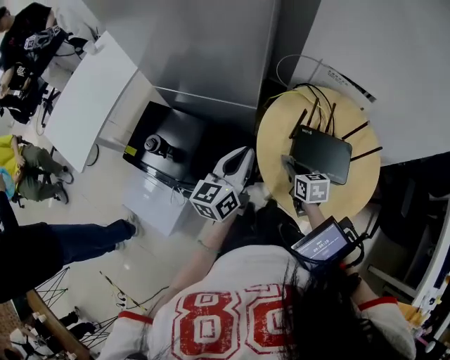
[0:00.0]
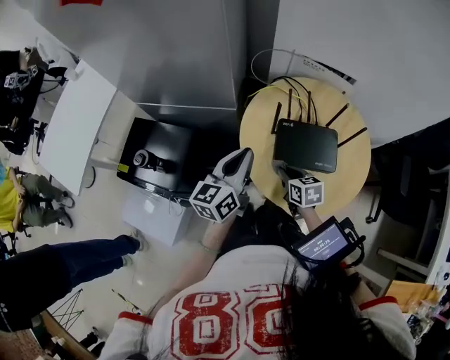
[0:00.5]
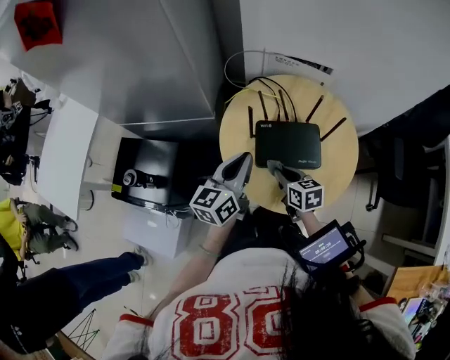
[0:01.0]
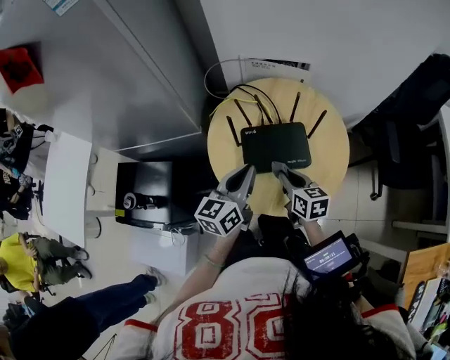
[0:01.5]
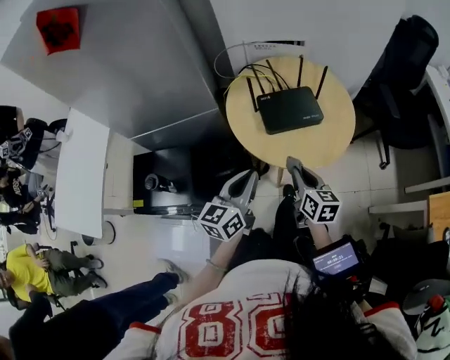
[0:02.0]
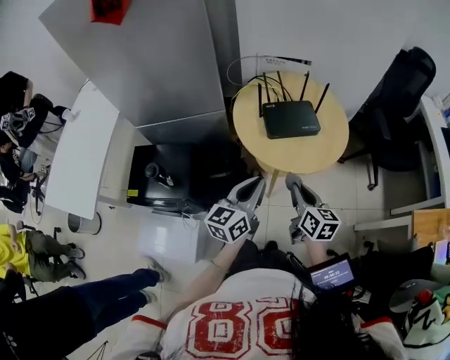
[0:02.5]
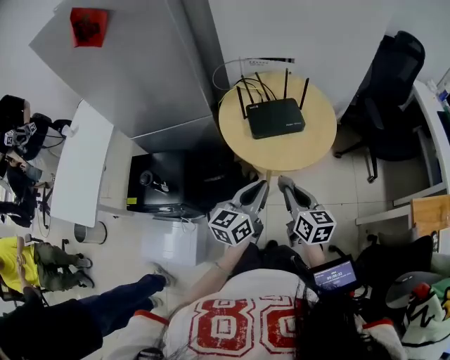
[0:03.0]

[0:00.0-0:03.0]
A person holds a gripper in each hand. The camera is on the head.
0:00.0 to 0:01.5: The left gripper travels to the right by approximately 15 cm, and changes its angle by some 20 degrees; the right gripper goes about 10 cm to the right and upward, and turns by roughly 30 degrees.
0:01.5 to 0:03.0: The right gripper moves backward and upward, approximately 25 cm. Meanwhile the left gripper moves backward, about 20 cm.

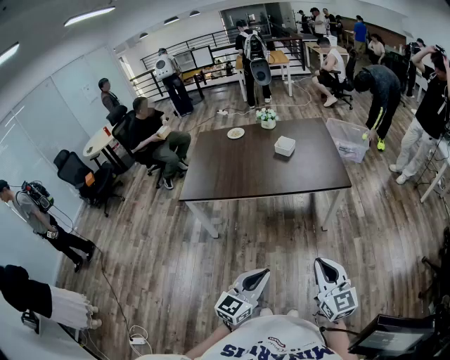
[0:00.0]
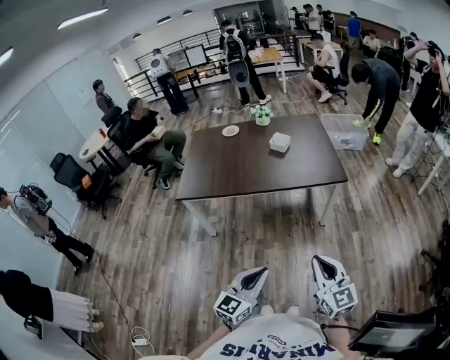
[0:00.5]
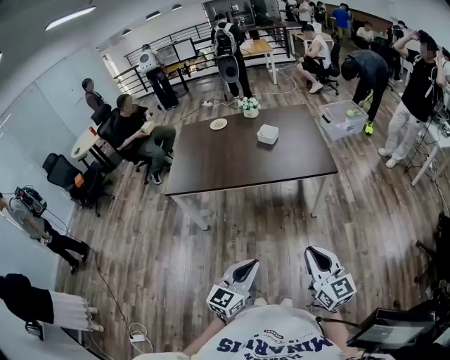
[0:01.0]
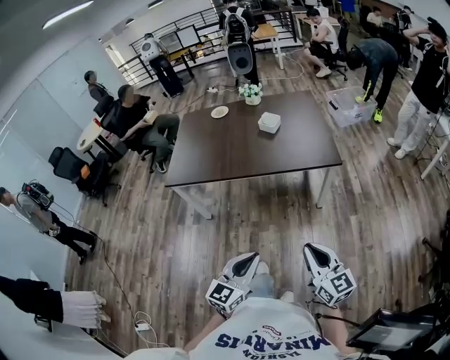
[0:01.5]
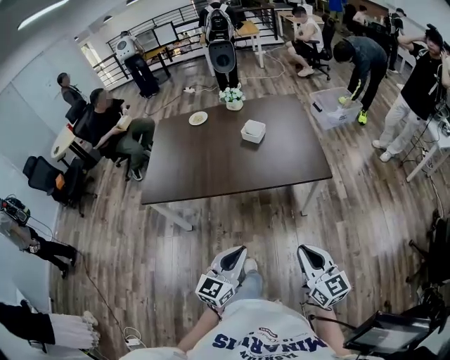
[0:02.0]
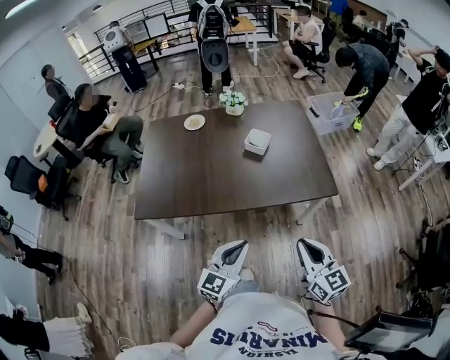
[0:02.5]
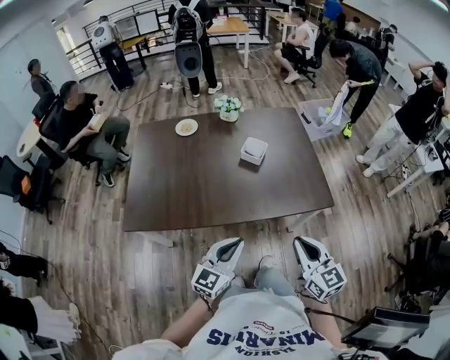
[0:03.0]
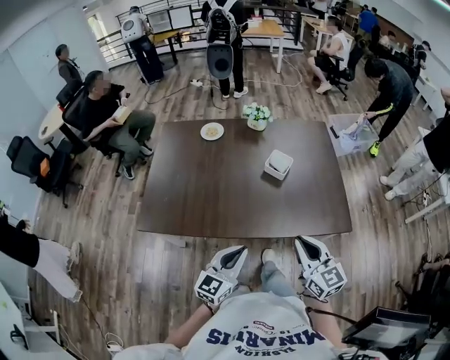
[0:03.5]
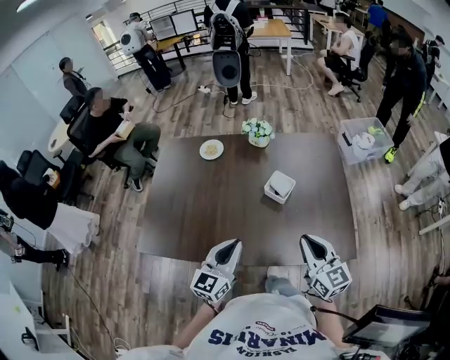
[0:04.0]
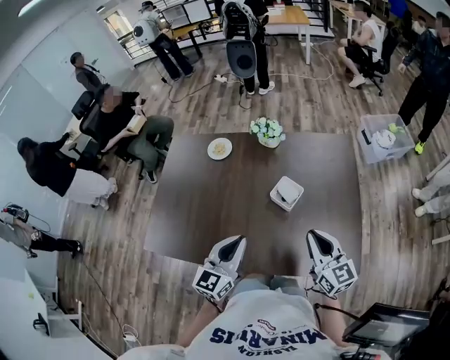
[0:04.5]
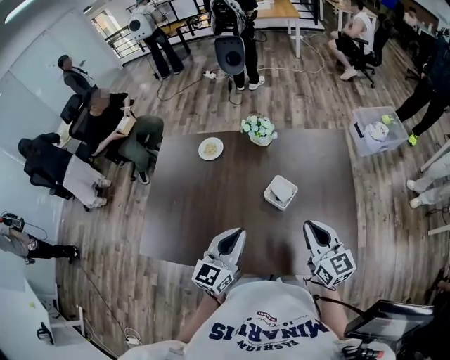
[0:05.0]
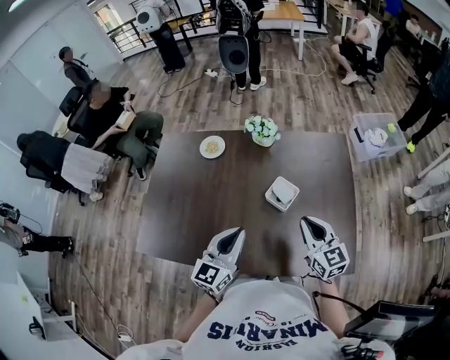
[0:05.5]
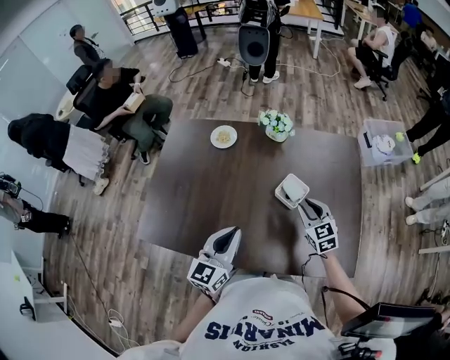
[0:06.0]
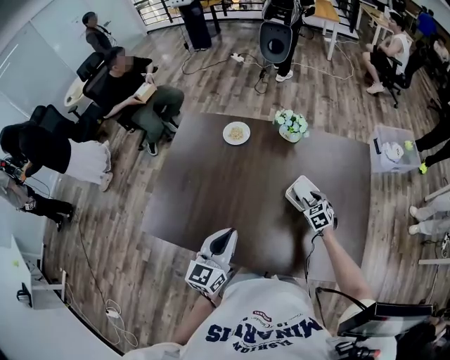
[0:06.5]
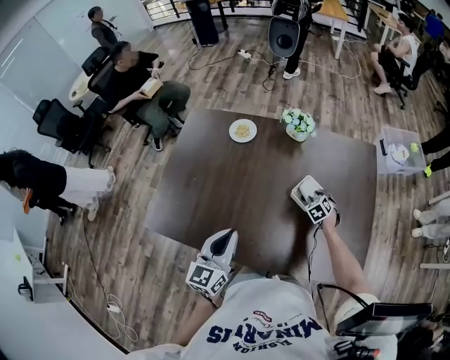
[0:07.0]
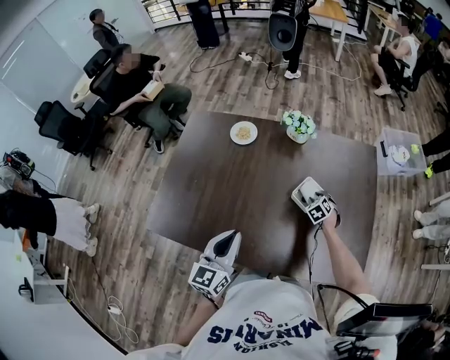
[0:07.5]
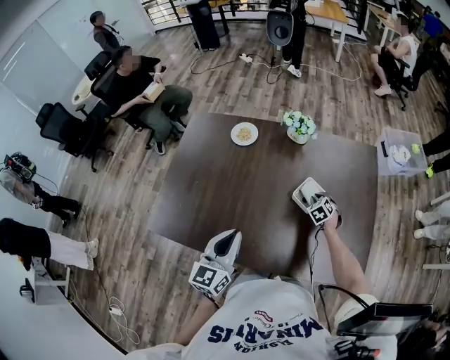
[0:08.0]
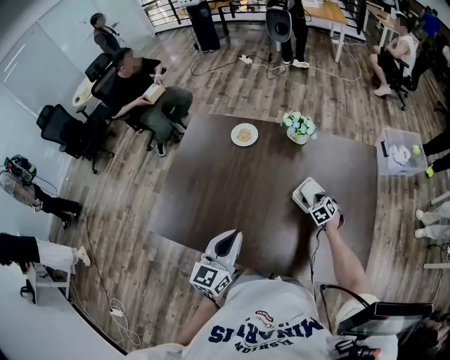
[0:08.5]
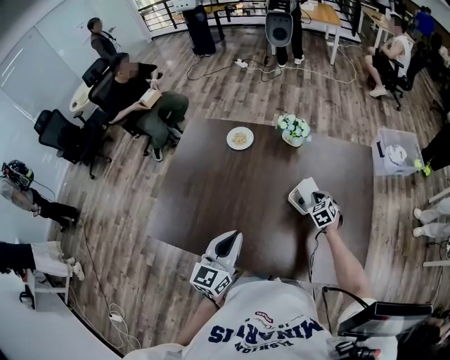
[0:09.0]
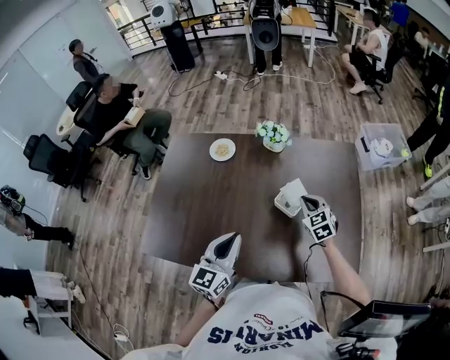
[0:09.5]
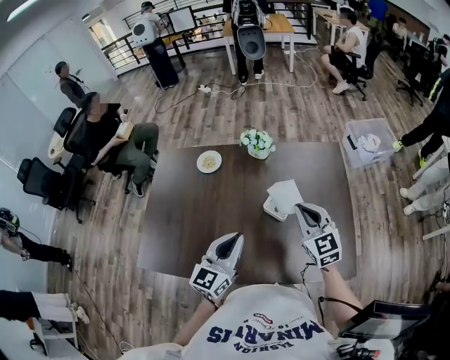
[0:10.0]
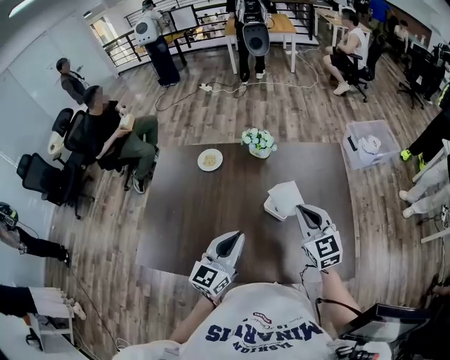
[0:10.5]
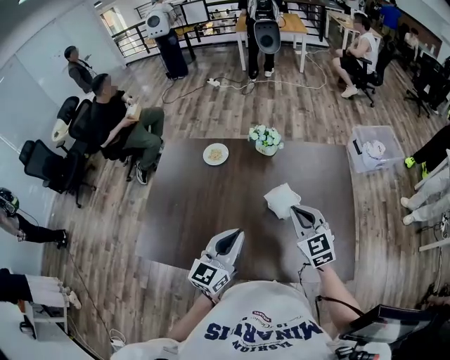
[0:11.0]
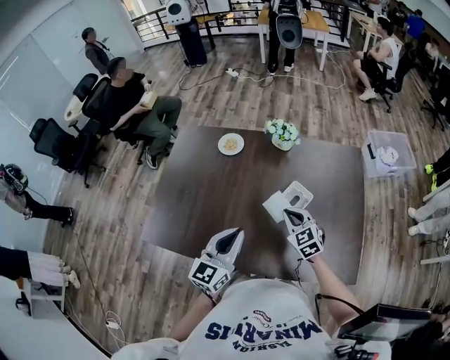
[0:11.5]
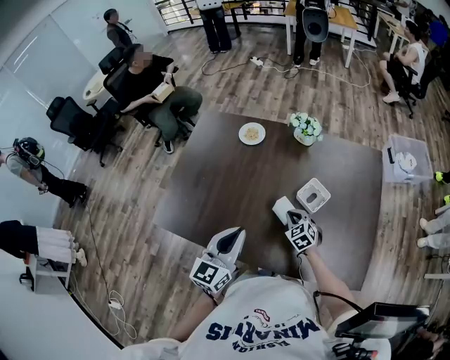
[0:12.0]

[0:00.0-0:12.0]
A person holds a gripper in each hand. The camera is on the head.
0:00.0 to 0:02.0: The two grippers go about 15 cm forward.
0:02.0 to 0:04.0: Both grippers are carried forward, roughly 50 cm.
0:04.0 to 0:06.0: The right gripper shifts about 25 cm forward and downward, swivels about 30 degrees, and opens, while the left gripper goes about 10 cm forward.
0:06.0 to 0:08.0: The right gripper is displaced downward and forward by approximately 20 cm, and swivels some 30 degrees. Meanwhile the left gripper heads to the left, covering about 5 cm.
0:08.0 to 0:10.0: The left gripper is displaced to the right by approximately 10 cm, while the right gripper travels upward by about 30 cm, and points its fingers about 40 degrees further upward.
0:10.0 to 0:12.0: The right gripper heads downward and to the left, covering roughly 30 cm, and turns by roughly 30 degrees. The left gripper is displaced to the left by approximately 10 cm.

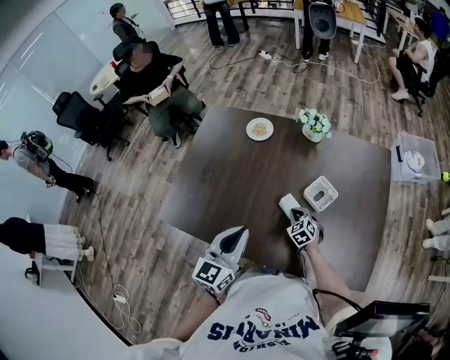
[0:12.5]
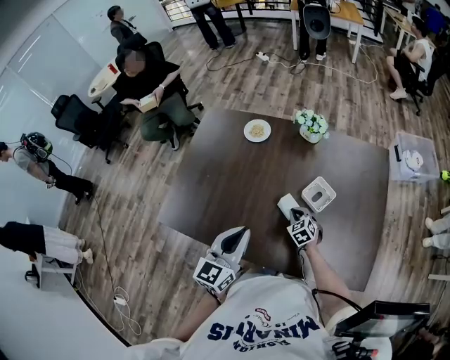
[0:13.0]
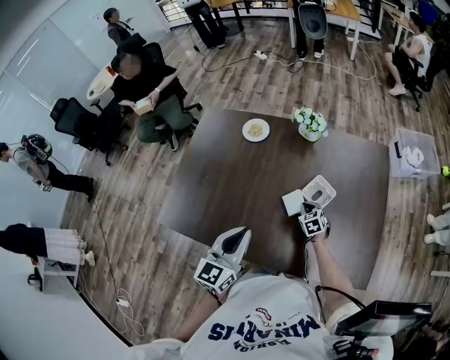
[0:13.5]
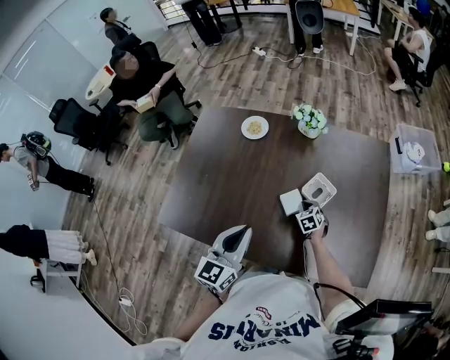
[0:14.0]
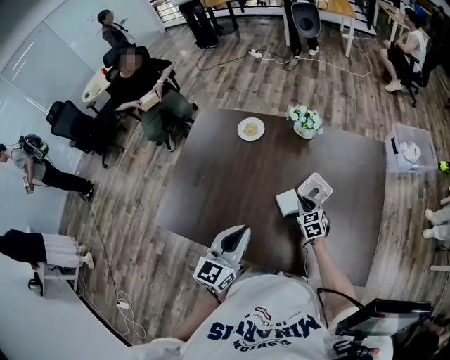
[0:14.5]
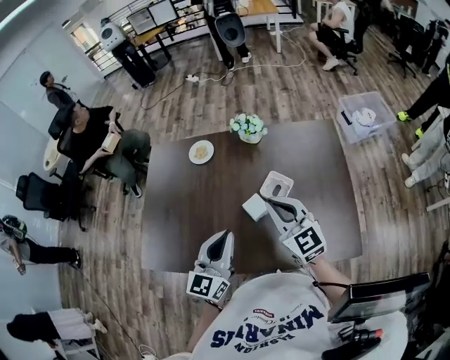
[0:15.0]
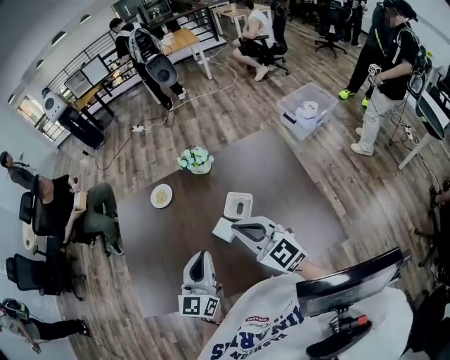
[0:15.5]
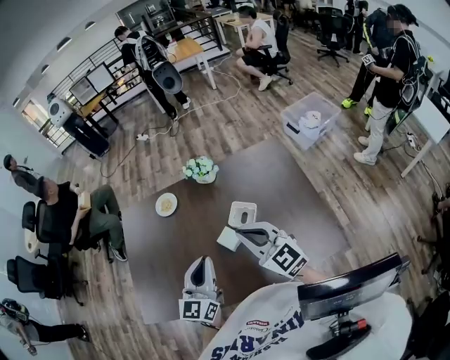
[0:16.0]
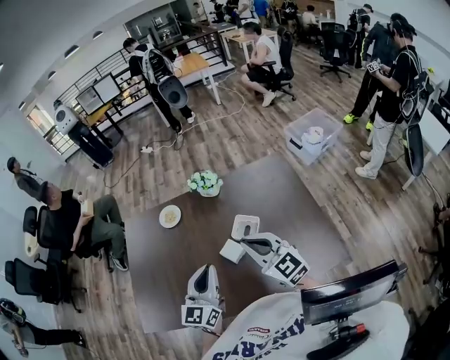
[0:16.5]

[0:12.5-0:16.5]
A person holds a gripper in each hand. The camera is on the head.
0:12.5 to 0:14.5: The right gripper moves to the right, approximately 5 cm.
0:14.5 to 0:16.5: The right gripper heads upward, covering about 30 cm, and angles its fingers upward, by about 30 degrees. The left gripper is displaced to the right by roughly 5 cm.

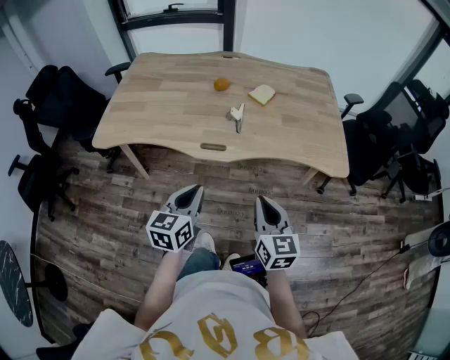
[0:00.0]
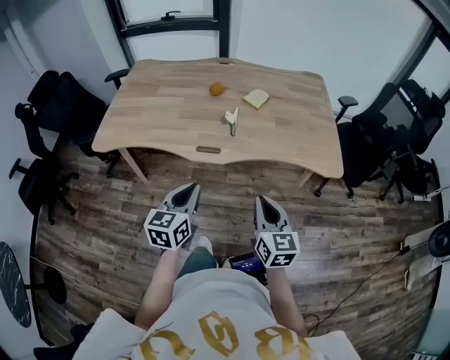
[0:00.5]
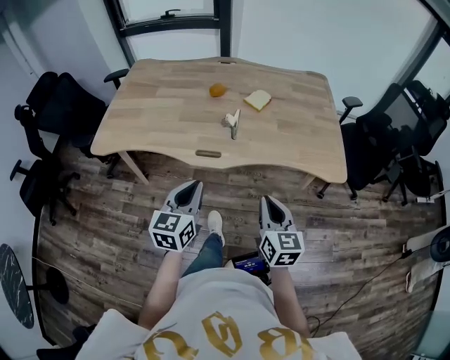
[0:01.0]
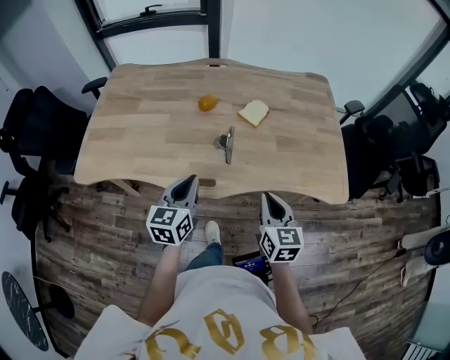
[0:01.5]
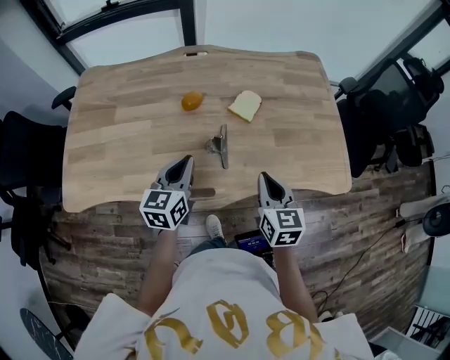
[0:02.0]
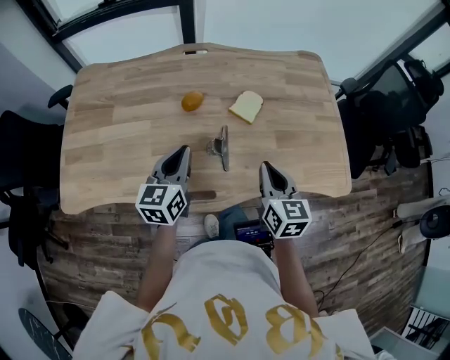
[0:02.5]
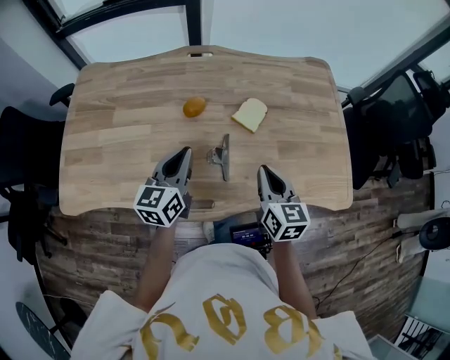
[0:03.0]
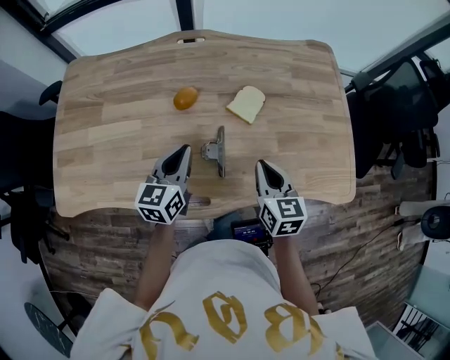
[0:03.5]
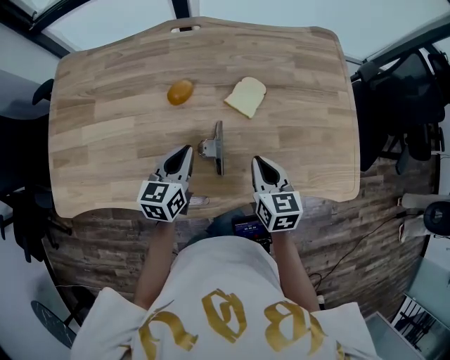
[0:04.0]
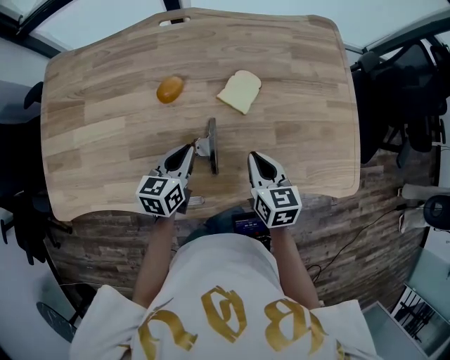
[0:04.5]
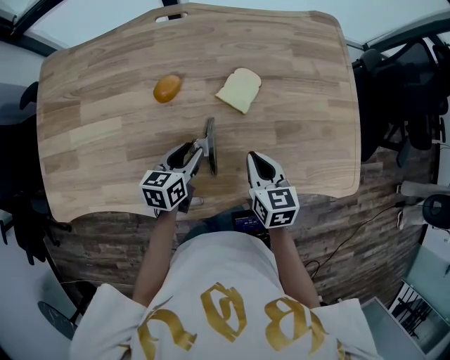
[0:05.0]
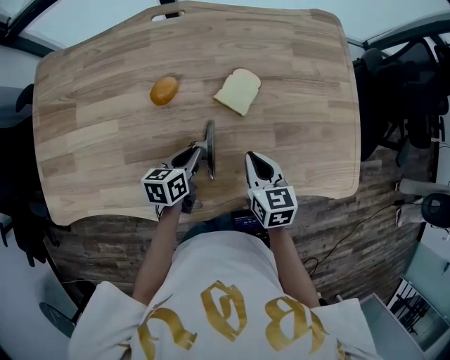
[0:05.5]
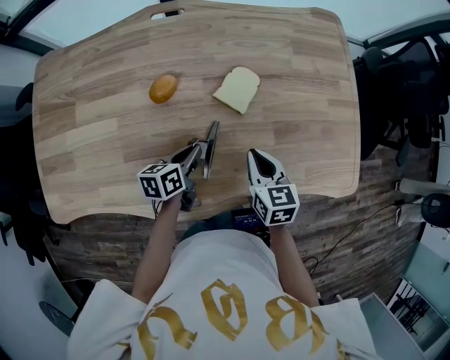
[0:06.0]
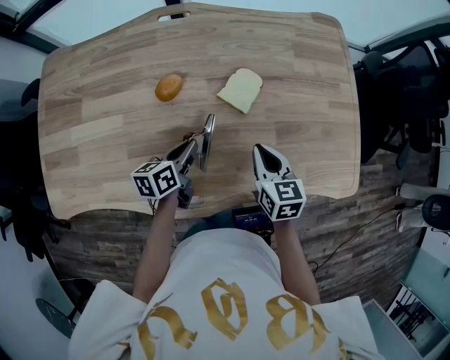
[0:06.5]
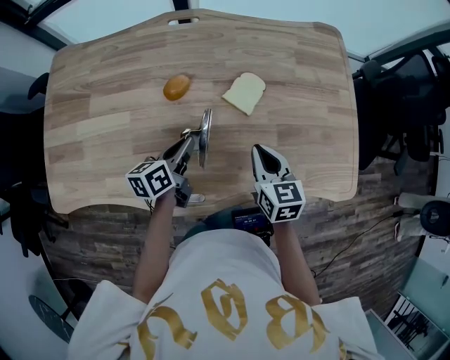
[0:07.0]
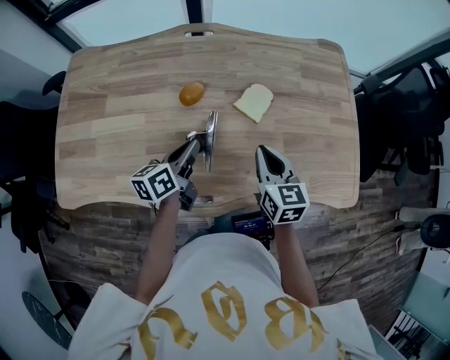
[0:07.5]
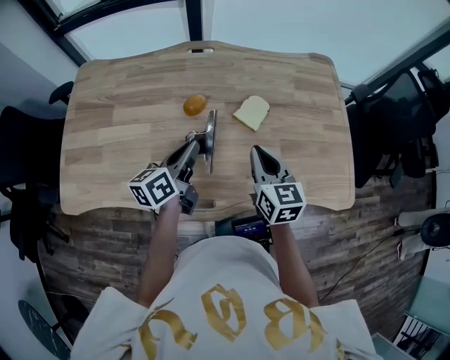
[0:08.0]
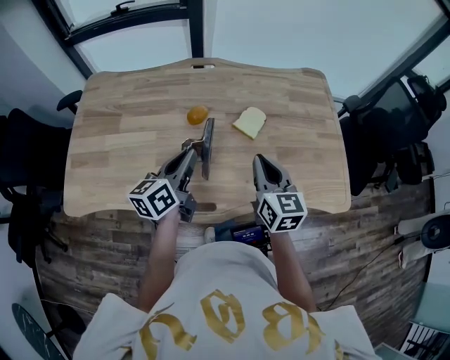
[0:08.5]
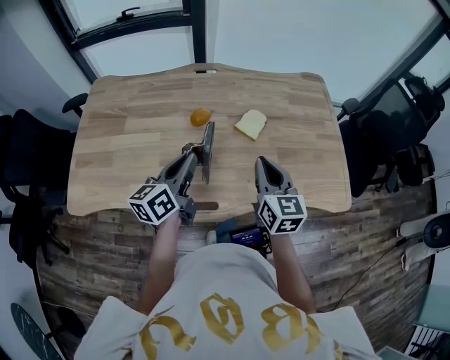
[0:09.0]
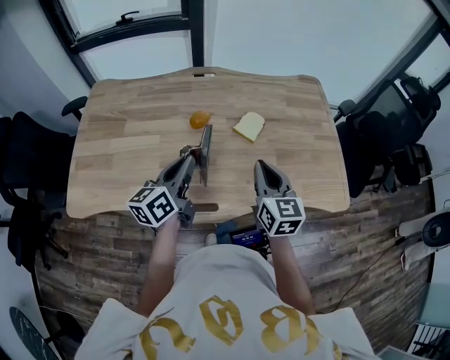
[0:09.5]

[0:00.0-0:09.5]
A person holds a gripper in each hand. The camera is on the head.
0:00.0 to 0:02.0: The two grippers go about 30 cm forward.
0:02.0 to 0:04.0: Both grippers travel together forward and downward, approximately 15 cm.
0:04.0 to 0:05.5: The left gripper travels downward by approximately 10 cm, rotates roughly 30 degrees, and opens and closes again.
0:05.5 to 0:07.5: The right gripper travels upward by about 10 cm. The left gripper is displaced upward and to the left by about 15 cm, and changes its angle by some 20 degrees.
0:07.5 to 0:09.5: Both grippers travel together upward and backward, roughly 15 cm.
